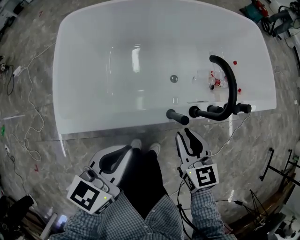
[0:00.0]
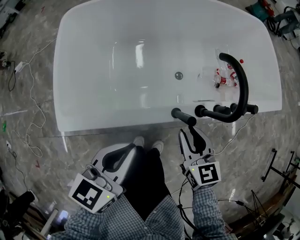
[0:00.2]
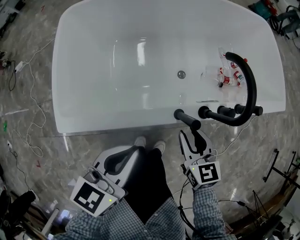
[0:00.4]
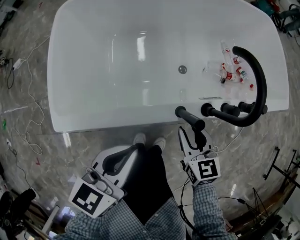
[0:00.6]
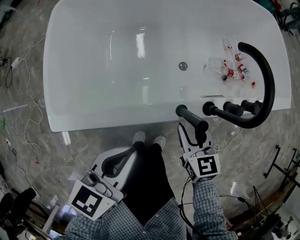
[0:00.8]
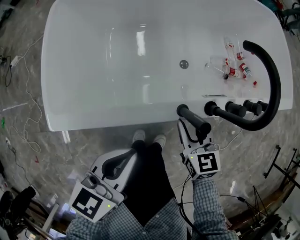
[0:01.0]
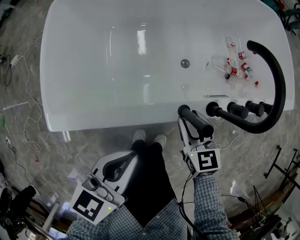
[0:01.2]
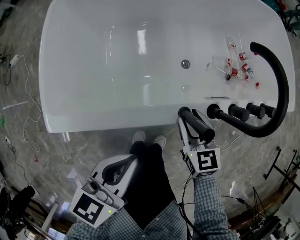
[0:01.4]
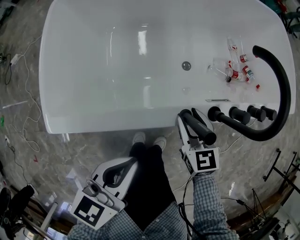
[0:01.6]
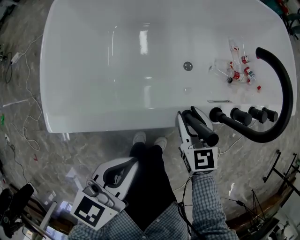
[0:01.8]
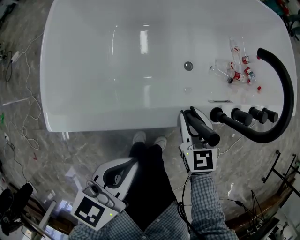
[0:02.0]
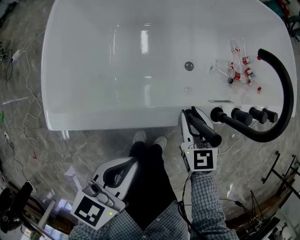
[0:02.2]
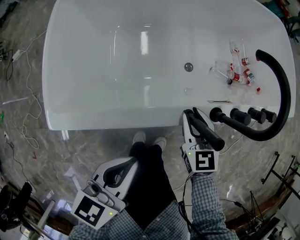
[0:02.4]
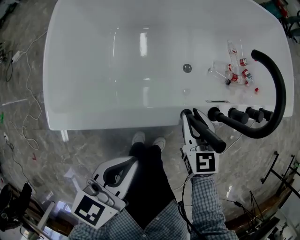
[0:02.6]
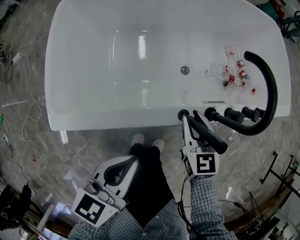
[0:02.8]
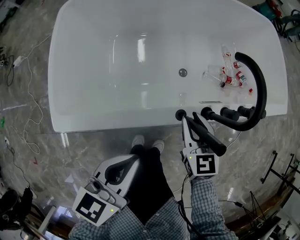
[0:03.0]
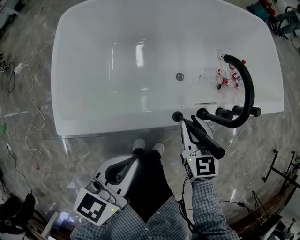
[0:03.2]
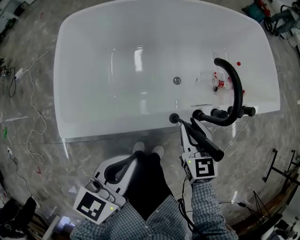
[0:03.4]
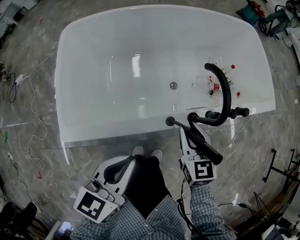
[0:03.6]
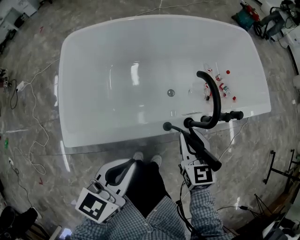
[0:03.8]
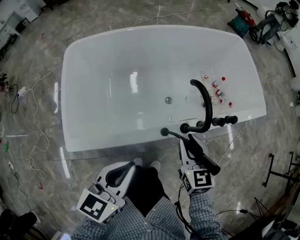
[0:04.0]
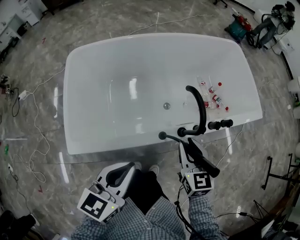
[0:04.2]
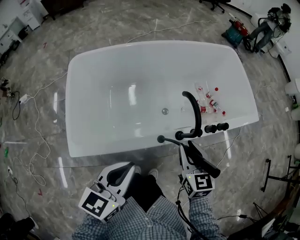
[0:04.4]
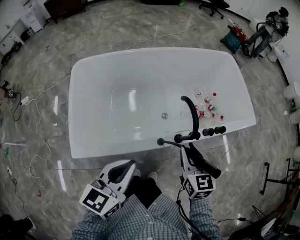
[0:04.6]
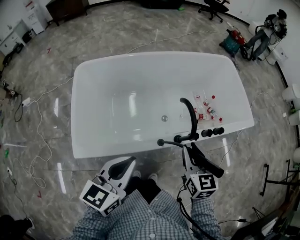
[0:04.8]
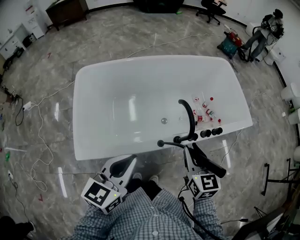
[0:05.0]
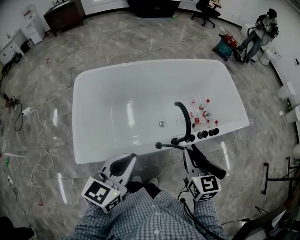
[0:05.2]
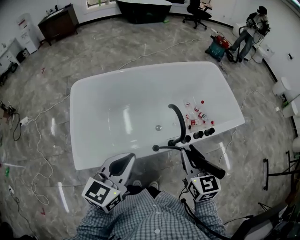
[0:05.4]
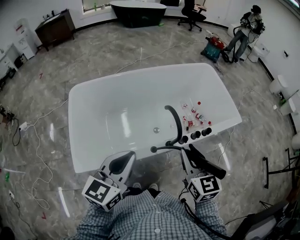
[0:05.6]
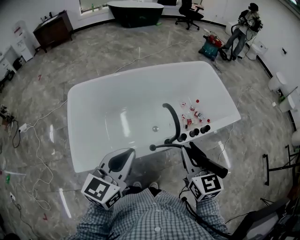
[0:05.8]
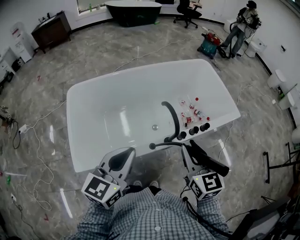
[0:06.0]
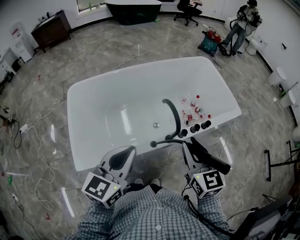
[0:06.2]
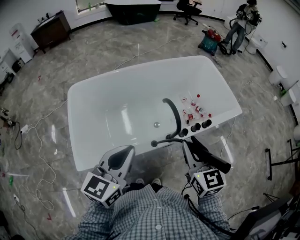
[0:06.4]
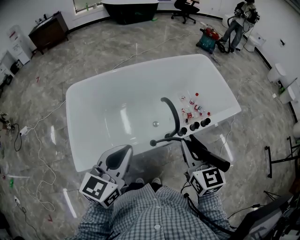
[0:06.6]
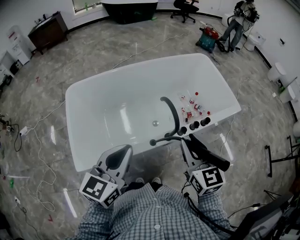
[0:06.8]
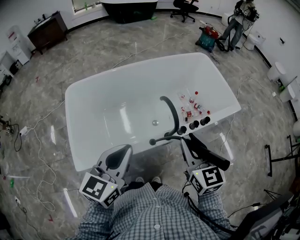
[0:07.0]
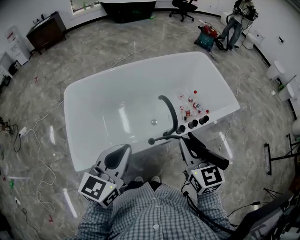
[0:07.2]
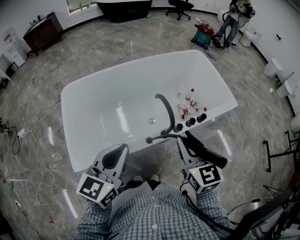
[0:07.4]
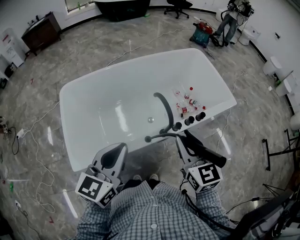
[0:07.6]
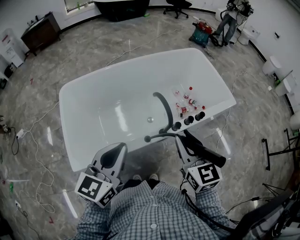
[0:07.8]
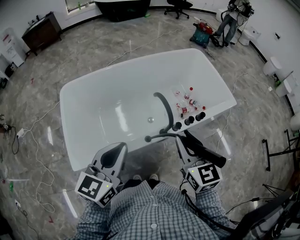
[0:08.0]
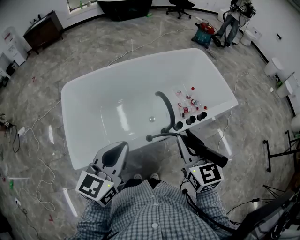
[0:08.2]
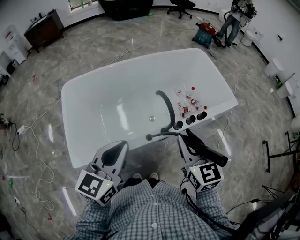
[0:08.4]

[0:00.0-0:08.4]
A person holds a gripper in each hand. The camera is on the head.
0:00.0 to 0:01.4: The left gripper is displaced downward by approximately 10 cm. The right gripper shifts some 15 cm downward.
0:01.4 to 0:02.8: The grippers stay close to where they were, moving slightly.
0:02.8 to 0:04.2: The grippers both shift upward by some 15 cm.
0:04.2 to 0:05.6: Both grippers travel together upward, approximately 10 cm.
0:05.6 to 0:08.4: The grippers stay close to where they were, moving slightly.

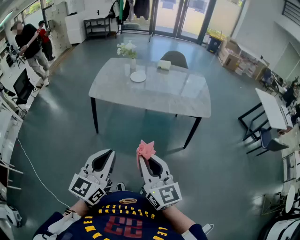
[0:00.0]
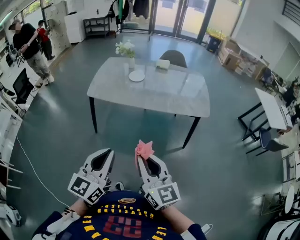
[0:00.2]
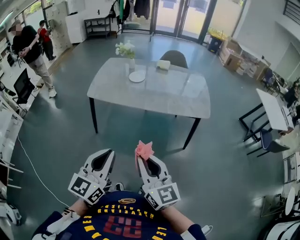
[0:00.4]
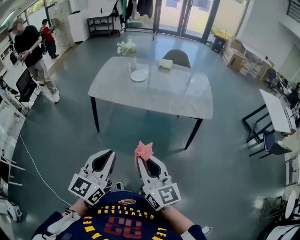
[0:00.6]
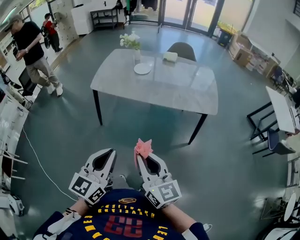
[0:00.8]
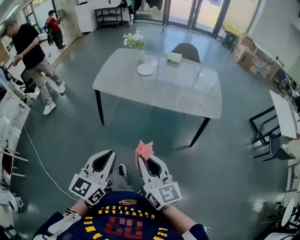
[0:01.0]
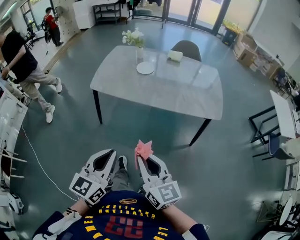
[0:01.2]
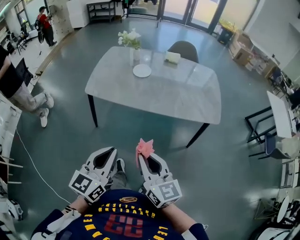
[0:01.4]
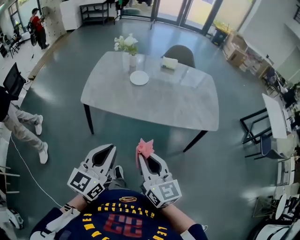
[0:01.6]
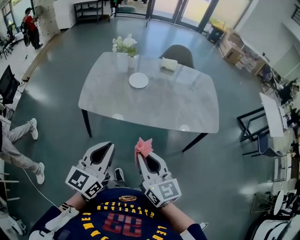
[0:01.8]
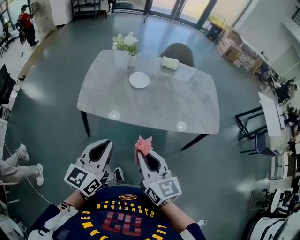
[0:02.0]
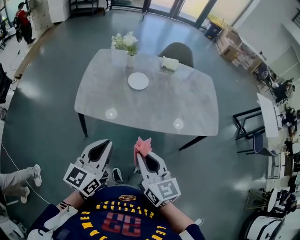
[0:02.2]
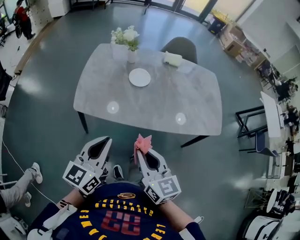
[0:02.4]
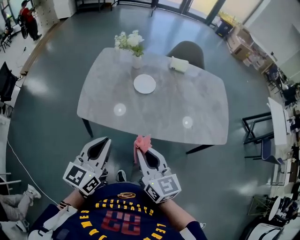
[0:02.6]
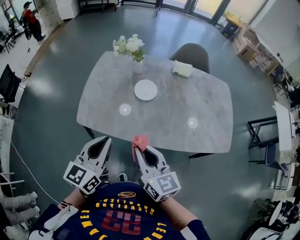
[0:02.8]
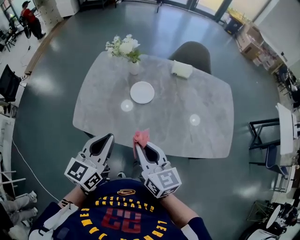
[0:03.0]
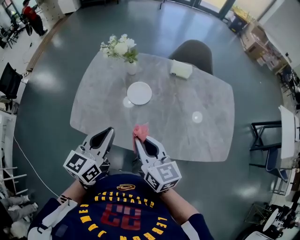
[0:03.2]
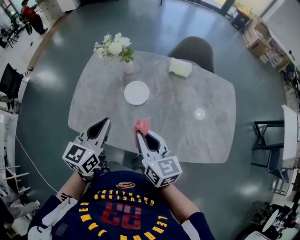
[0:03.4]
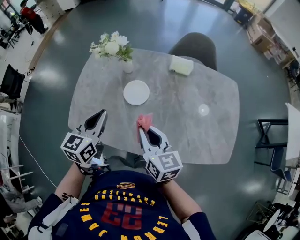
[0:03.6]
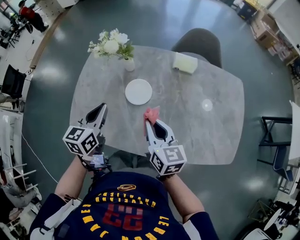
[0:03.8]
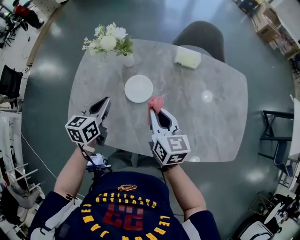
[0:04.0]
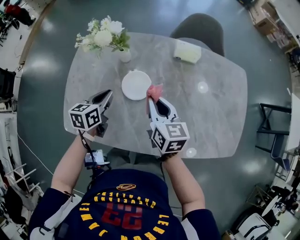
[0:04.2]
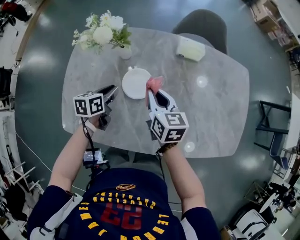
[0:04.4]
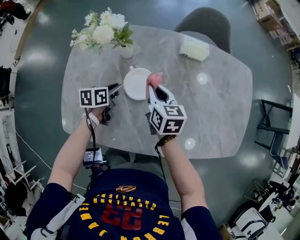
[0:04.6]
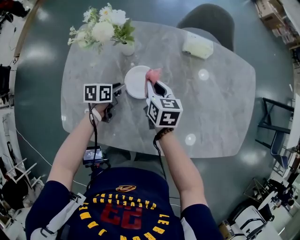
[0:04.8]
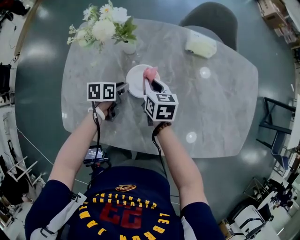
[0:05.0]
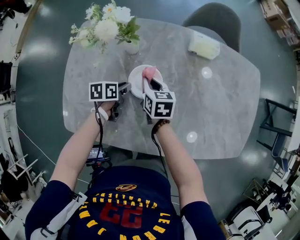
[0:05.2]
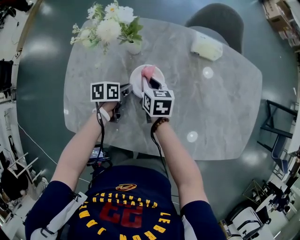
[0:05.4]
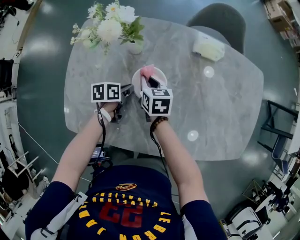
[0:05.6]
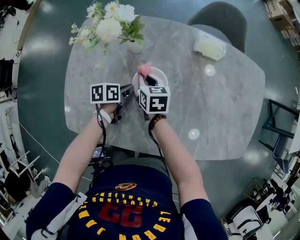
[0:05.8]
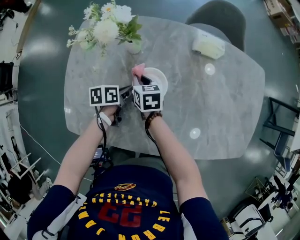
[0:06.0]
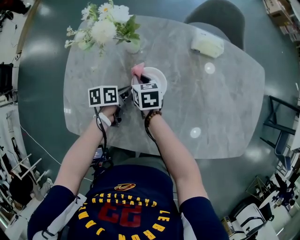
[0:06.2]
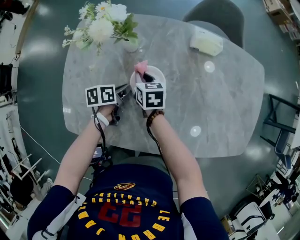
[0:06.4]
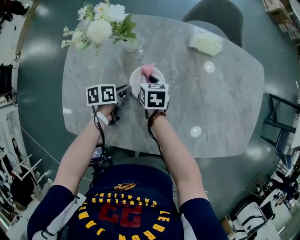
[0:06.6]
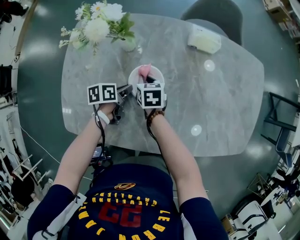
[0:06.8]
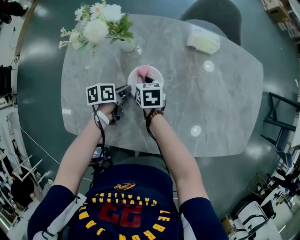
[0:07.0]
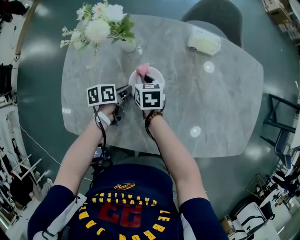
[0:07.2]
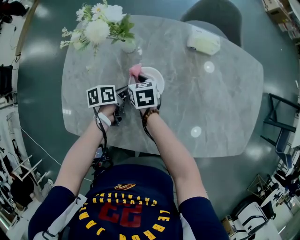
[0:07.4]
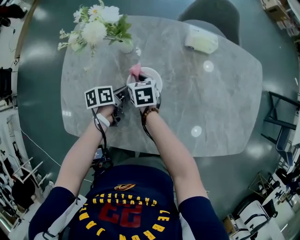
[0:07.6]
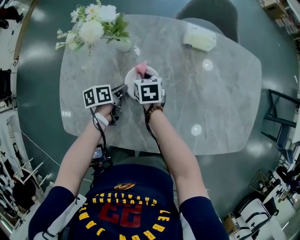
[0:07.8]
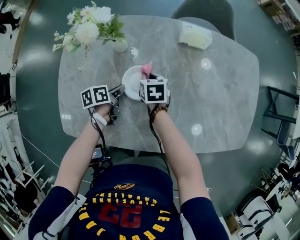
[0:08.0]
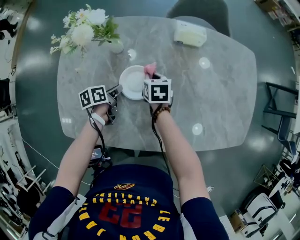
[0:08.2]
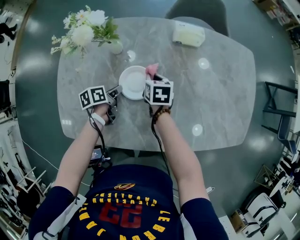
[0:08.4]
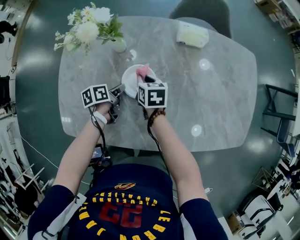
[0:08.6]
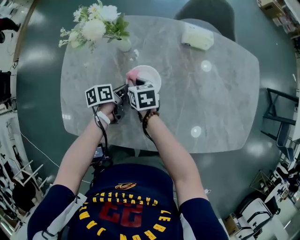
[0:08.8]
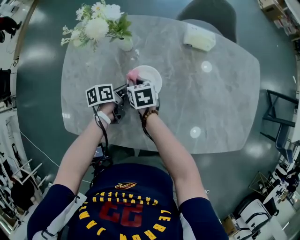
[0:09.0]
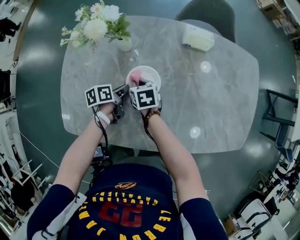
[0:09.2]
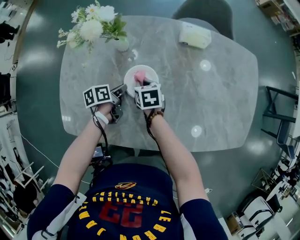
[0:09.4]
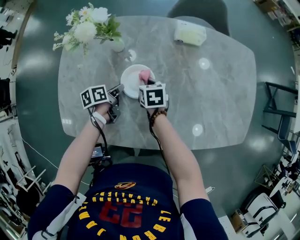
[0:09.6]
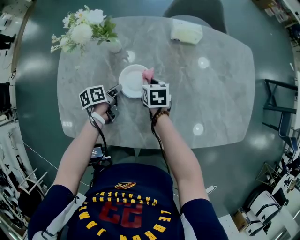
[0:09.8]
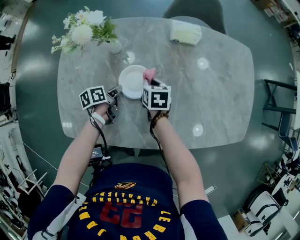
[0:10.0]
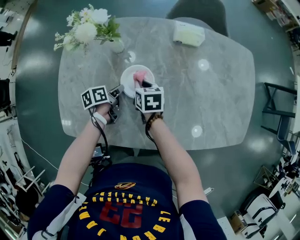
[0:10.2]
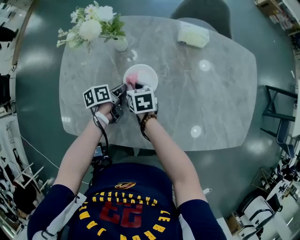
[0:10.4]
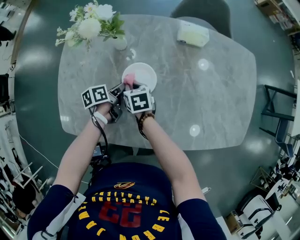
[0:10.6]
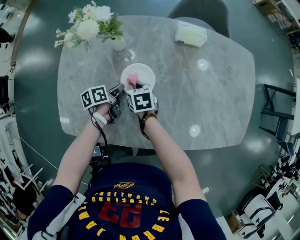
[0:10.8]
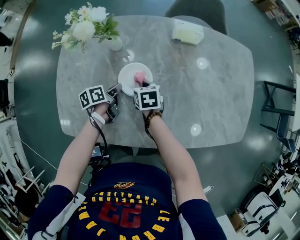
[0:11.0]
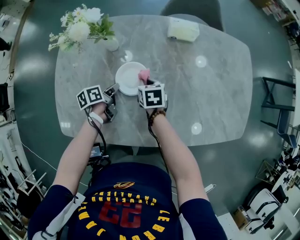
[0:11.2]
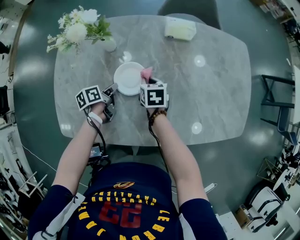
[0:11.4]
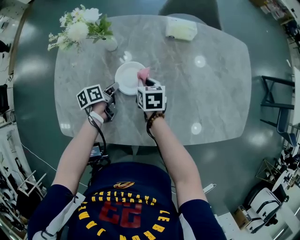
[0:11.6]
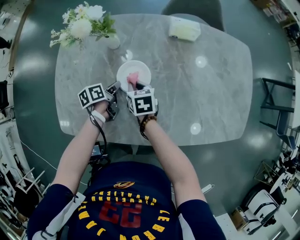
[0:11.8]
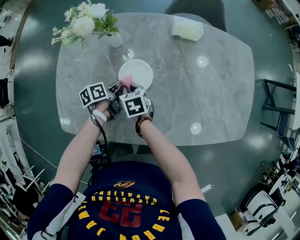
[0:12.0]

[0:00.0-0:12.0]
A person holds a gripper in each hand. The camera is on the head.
0:00.0 to 0:01.6: Both grippers move forward, some 20 cm.
0:01.6 to 0:03.0: The two grippers go roughly 30 cm forward.
0:03.0 to 0:04.4: The grippers both shift forward and downward by approximately 35 cm. The left gripper changes its angle by some 40 degrees.
0:04.4 to 0:06.0: The left gripper shifts about 10 cm downward, and changes its angle by roughly 20 degrees. The right gripper is displaced downward and to the left by about 20 cm.
0:06.0 to 0:07.6: The grippers make only small movements.
0:07.6 to 0:09.0: The right gripper travels to the right and back again, some 10 cm each way.
0:09.0 to 0:10.4: The right gripper goes to the right and returns, roughly 10 cm each way.
0:10.4 to 0:12.0: The right gripper travels to the right and back again, about 10 cm each way.

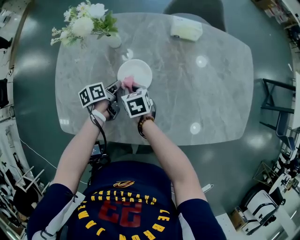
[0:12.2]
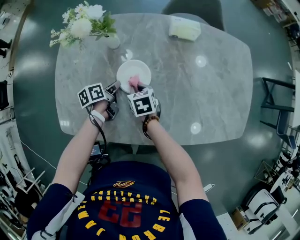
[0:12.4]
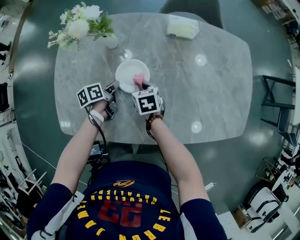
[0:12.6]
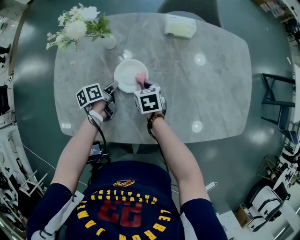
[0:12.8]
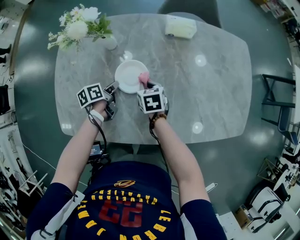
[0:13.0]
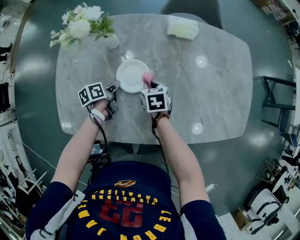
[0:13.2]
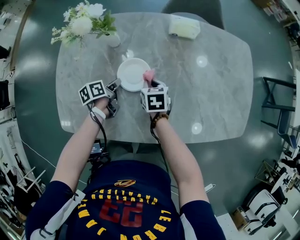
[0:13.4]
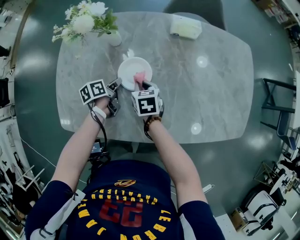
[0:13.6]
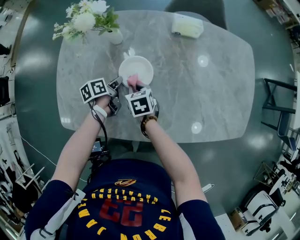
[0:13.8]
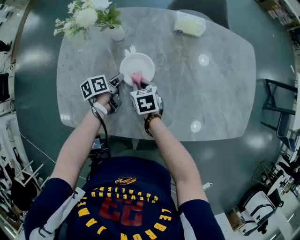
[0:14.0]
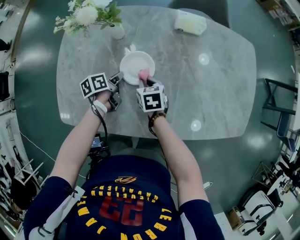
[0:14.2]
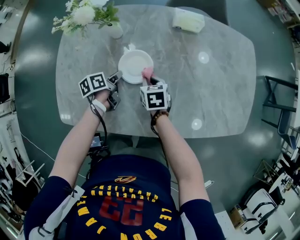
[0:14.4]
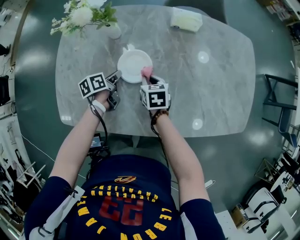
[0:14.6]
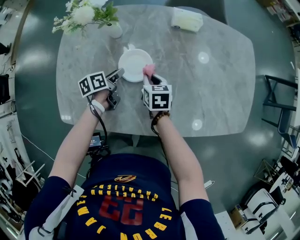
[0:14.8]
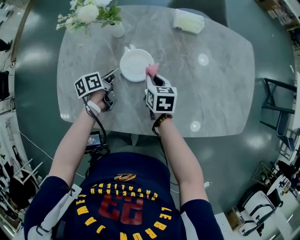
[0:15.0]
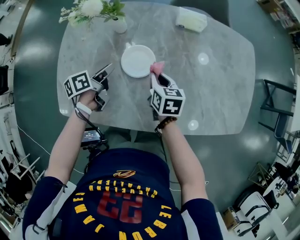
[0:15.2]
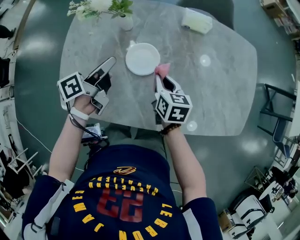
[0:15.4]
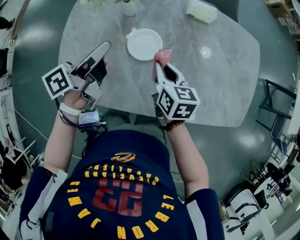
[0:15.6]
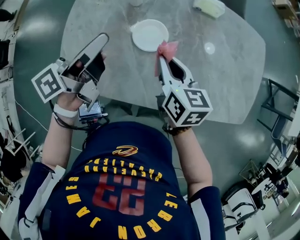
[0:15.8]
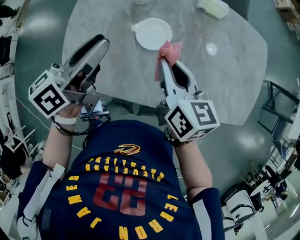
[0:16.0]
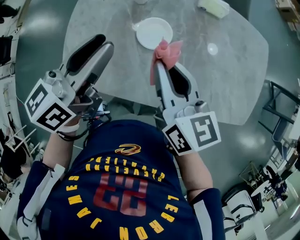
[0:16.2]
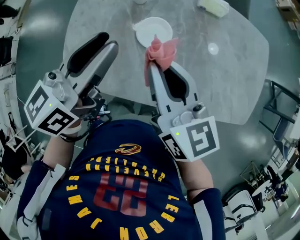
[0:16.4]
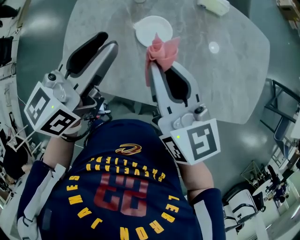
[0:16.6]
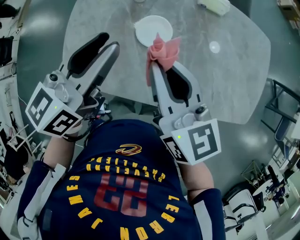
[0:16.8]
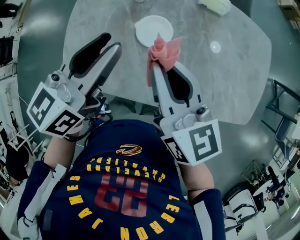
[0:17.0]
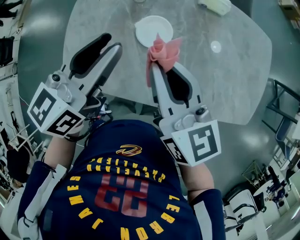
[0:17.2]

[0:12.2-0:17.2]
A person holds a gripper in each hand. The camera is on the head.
0:12.2 to 0:13.8: The right gripper travels to the right and back again, some 10 cm each way.
0:13.8 to 0:15.6: The left gripper travels upward by some 25 cm, swivels some 30 degrees, and opens, while the right gripper moves upward and to the right, some 15 cm, and turns by some 20 degrees.
0:15.6 to 0:17.2: The left gripper shifts about 10 cm upward and to the right, and twists about 40 degrees clockwise, seen from behind, while the right gripper heads upward, covering some 20 cm, and turns by about 30 degrees.
